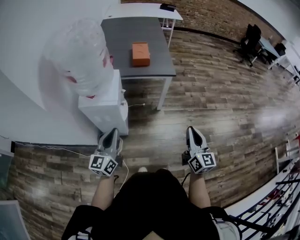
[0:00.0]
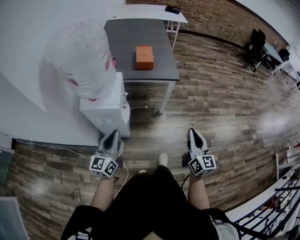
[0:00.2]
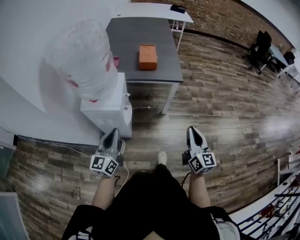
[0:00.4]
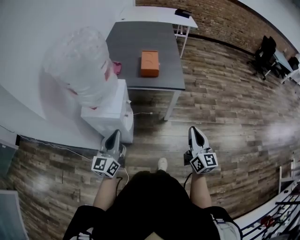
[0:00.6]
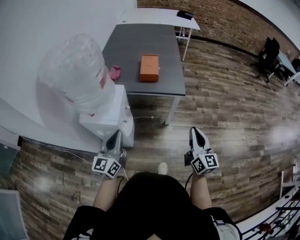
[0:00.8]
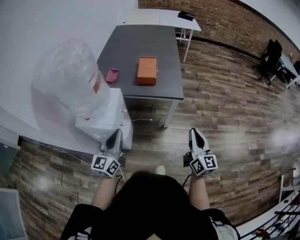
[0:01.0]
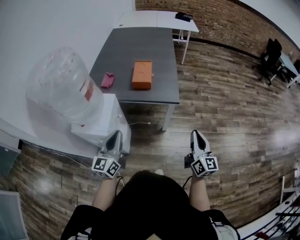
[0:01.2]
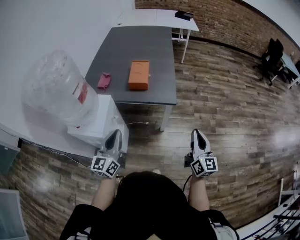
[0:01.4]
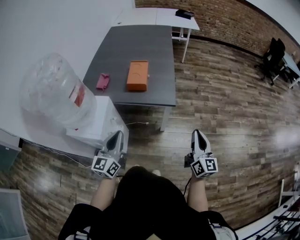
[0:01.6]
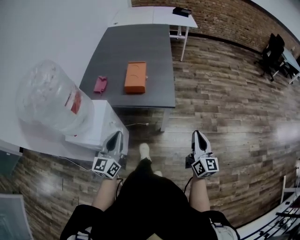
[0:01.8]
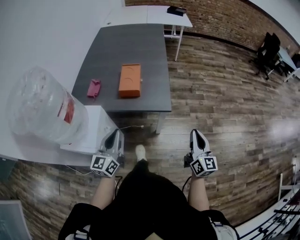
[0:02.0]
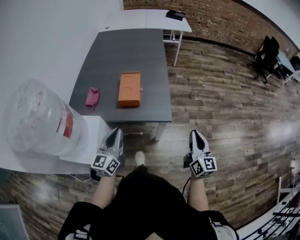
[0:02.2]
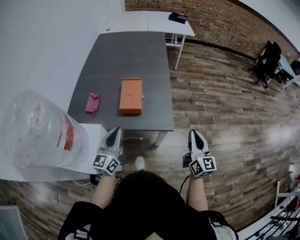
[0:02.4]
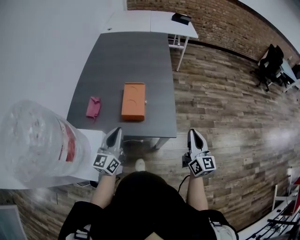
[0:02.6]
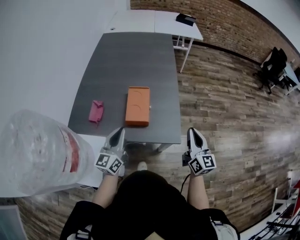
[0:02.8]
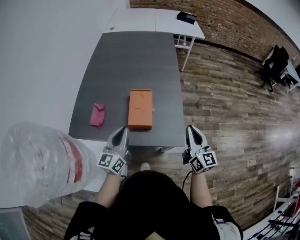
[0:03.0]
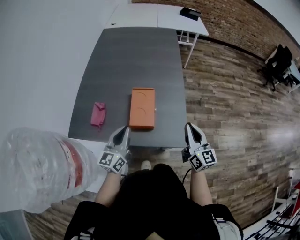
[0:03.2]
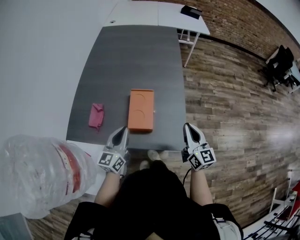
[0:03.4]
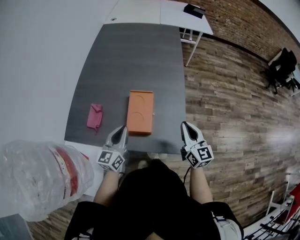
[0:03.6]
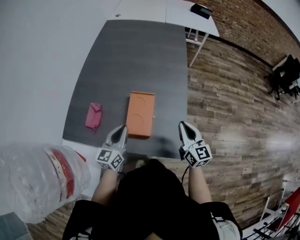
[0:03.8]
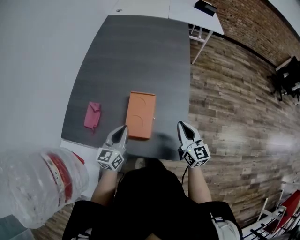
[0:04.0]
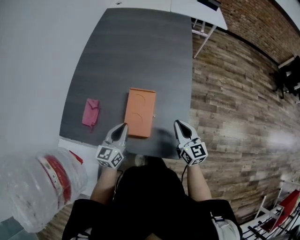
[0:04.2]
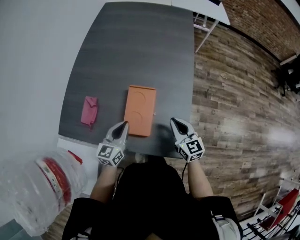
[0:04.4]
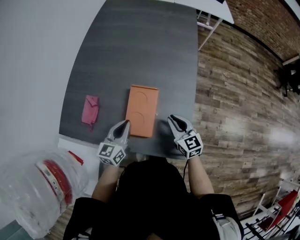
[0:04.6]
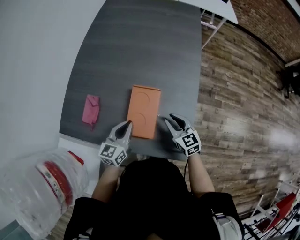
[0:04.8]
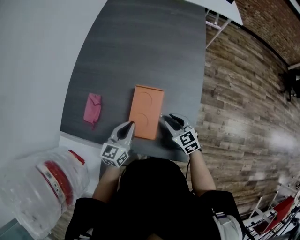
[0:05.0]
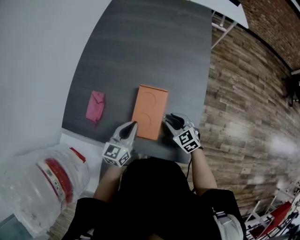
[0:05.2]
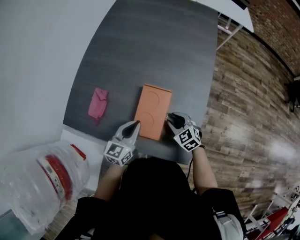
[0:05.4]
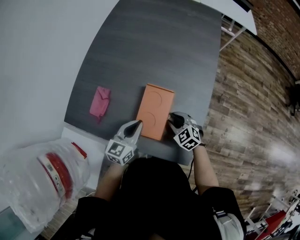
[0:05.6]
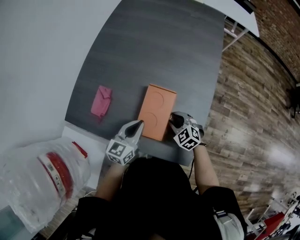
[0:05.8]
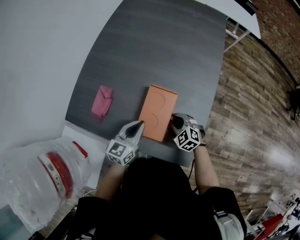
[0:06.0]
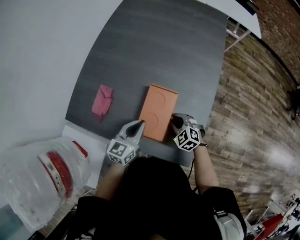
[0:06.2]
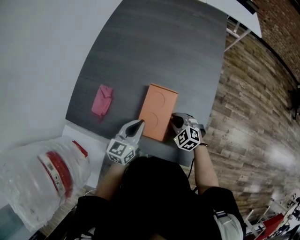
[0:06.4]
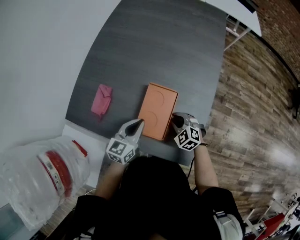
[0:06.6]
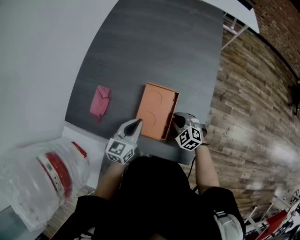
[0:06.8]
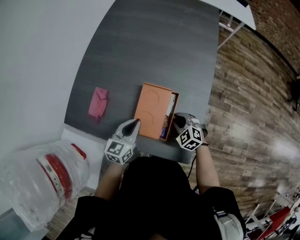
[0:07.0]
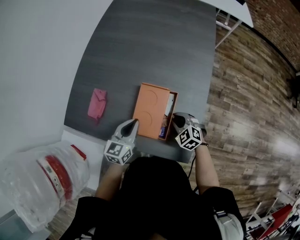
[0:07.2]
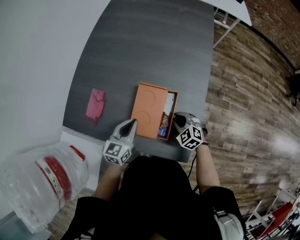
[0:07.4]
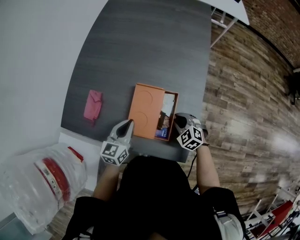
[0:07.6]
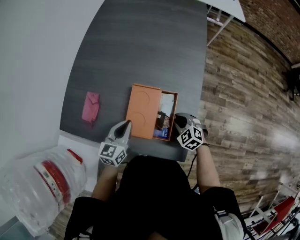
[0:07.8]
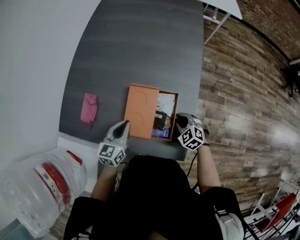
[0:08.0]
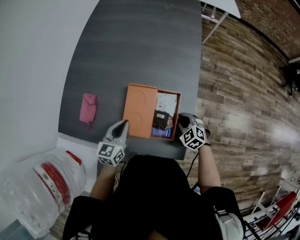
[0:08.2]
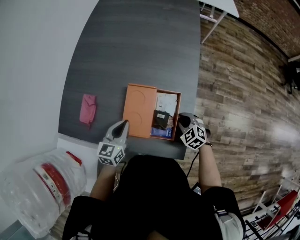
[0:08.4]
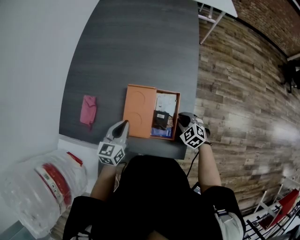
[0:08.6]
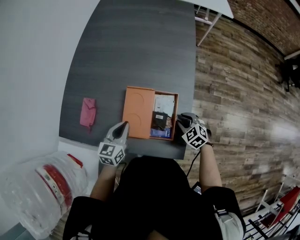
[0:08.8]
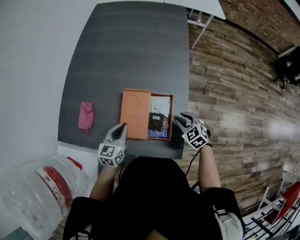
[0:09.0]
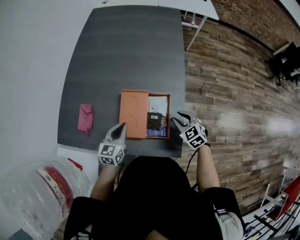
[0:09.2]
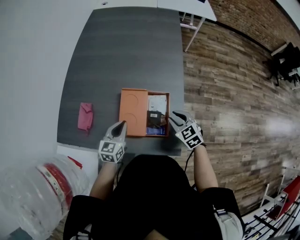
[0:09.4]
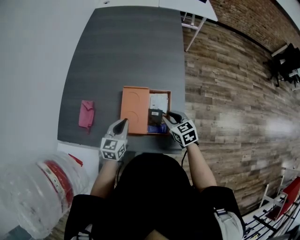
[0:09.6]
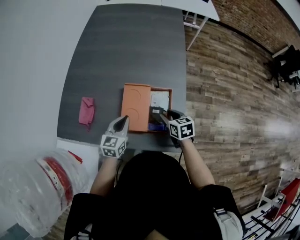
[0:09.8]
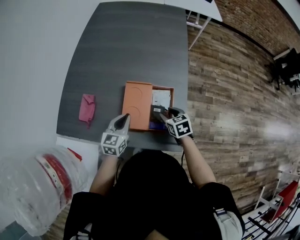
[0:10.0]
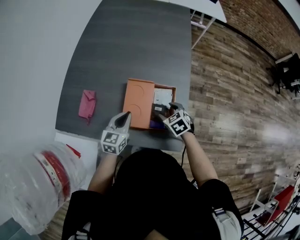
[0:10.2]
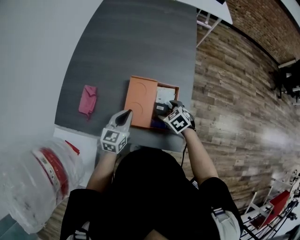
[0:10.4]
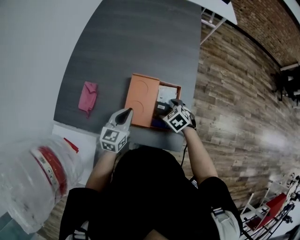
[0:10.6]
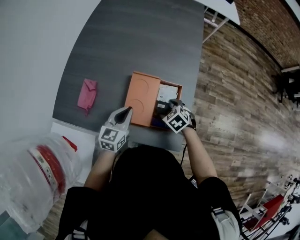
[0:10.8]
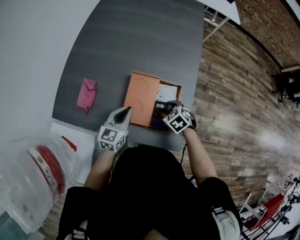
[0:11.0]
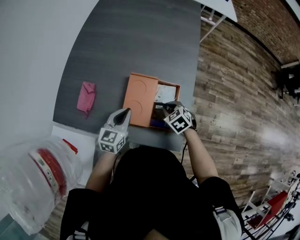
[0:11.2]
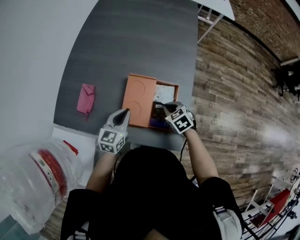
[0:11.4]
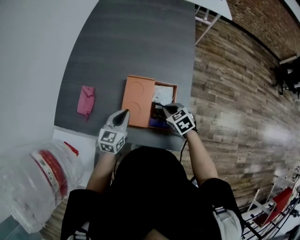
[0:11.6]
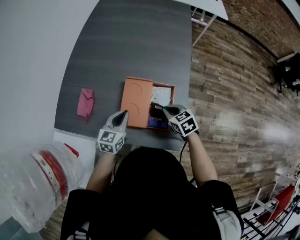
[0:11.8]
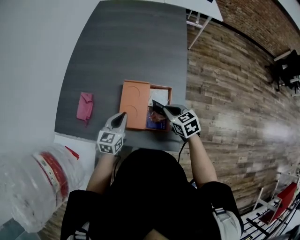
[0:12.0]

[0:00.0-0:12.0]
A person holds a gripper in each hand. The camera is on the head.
0:00.0 to 0:01.6: Both grippers move forward and to the right, approximately 25 cm.
0:01.6 to 0:03.0: The grippers both shift forward by about 25 cm.
0:03.0 to 0:04.4: The left gripper shifts approximately 15 cm downward and forward; the right gripper is displaced forward, downward and to the left by some 20 cm, and rotates roughly 30 degrees.
0:04.4 to 0:06.0: The right gripper travels downward and to the left by about 15 cm, and tilts its fingers approximately 30 degrees downward.
0:06.0 to 0:07.6: The right gripper goes approximately 5 cm to the right.
0:07.6 to 0:09.0: The right gripper moves to the right, some 5 cm.
0:09.0 to 0:10.4: The right gripper shifts about 10 cm to the left, and opens up.
0:10.4 to 0:12.0: The right gripper moves upward, about 10 cm, changes its angle by some 20 degrees, and closes.

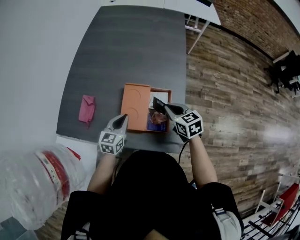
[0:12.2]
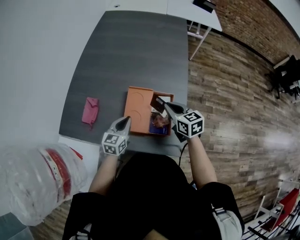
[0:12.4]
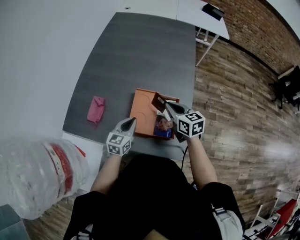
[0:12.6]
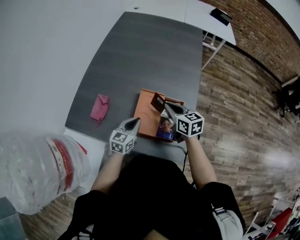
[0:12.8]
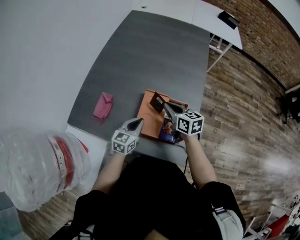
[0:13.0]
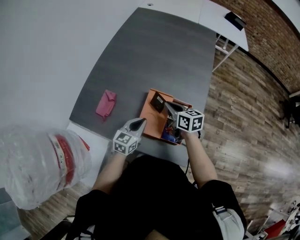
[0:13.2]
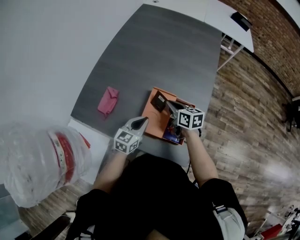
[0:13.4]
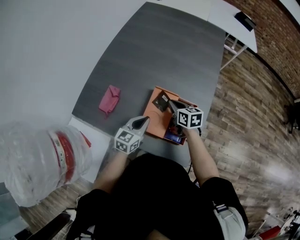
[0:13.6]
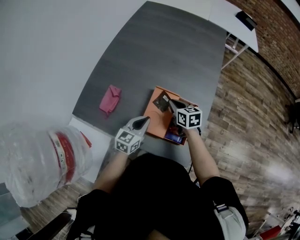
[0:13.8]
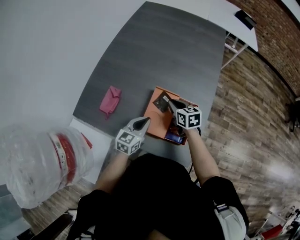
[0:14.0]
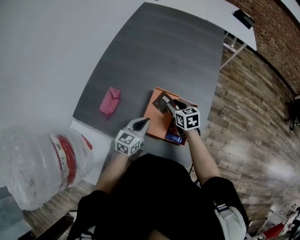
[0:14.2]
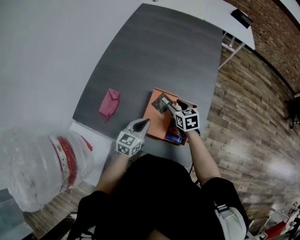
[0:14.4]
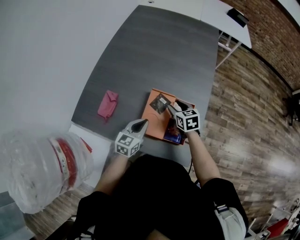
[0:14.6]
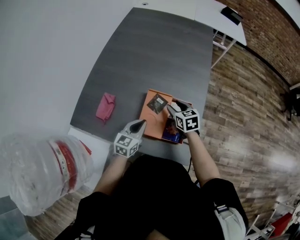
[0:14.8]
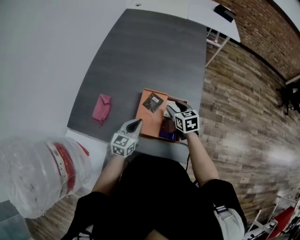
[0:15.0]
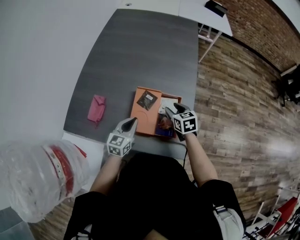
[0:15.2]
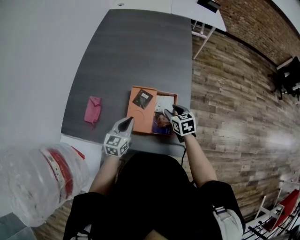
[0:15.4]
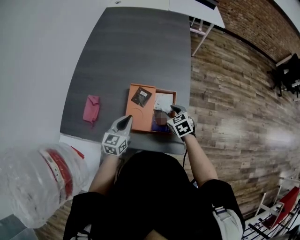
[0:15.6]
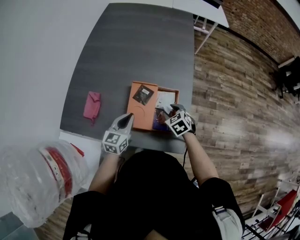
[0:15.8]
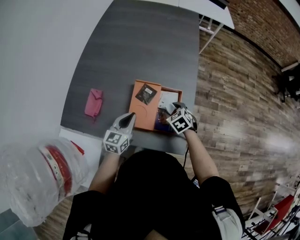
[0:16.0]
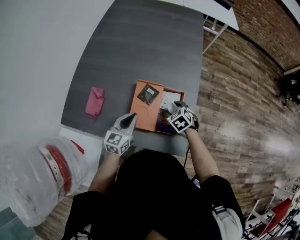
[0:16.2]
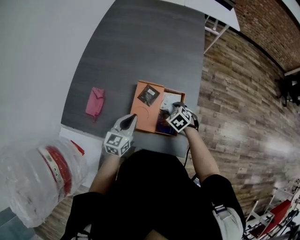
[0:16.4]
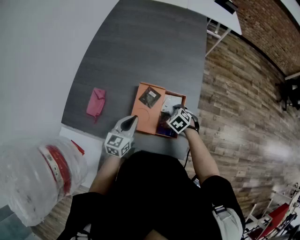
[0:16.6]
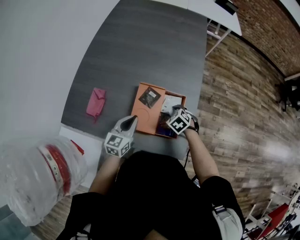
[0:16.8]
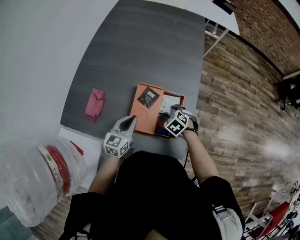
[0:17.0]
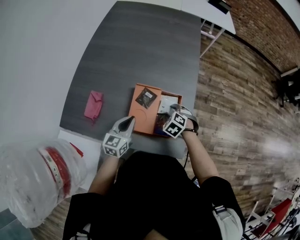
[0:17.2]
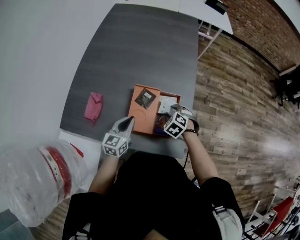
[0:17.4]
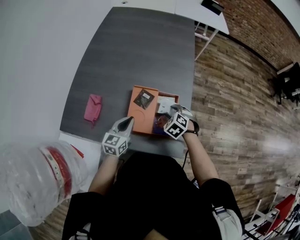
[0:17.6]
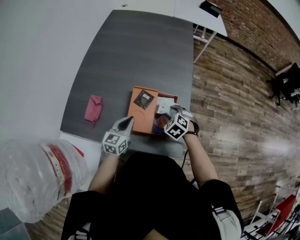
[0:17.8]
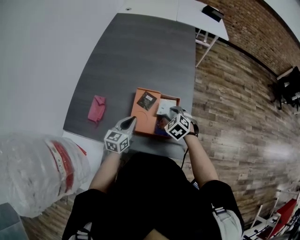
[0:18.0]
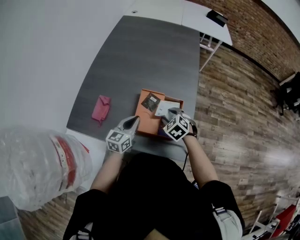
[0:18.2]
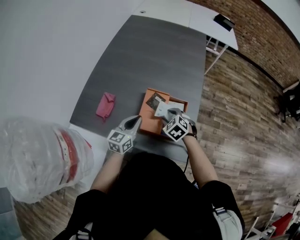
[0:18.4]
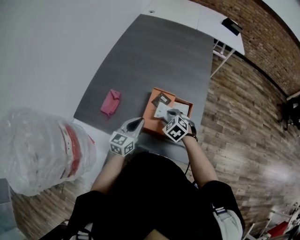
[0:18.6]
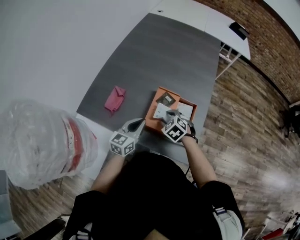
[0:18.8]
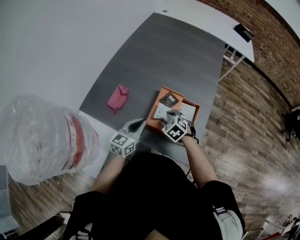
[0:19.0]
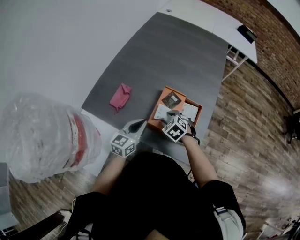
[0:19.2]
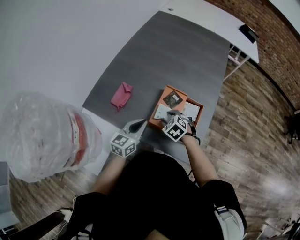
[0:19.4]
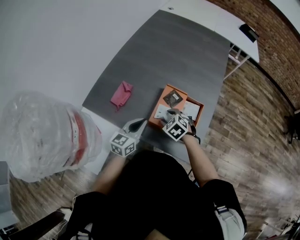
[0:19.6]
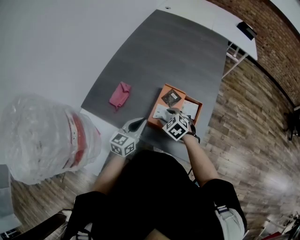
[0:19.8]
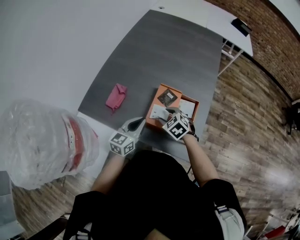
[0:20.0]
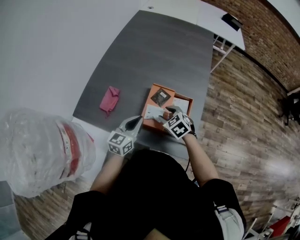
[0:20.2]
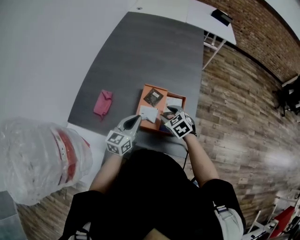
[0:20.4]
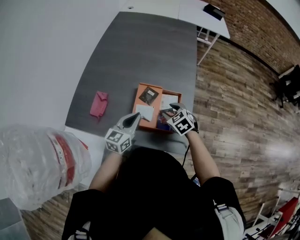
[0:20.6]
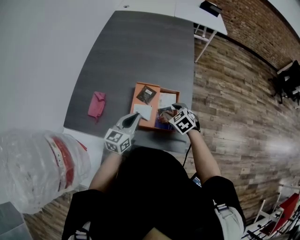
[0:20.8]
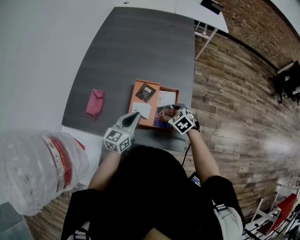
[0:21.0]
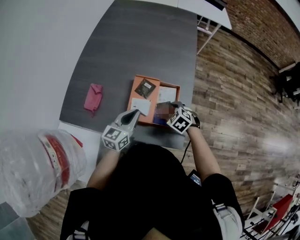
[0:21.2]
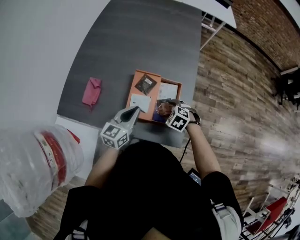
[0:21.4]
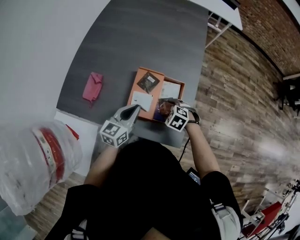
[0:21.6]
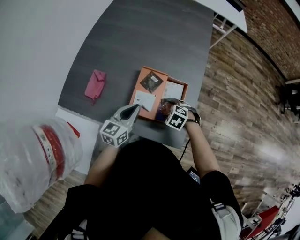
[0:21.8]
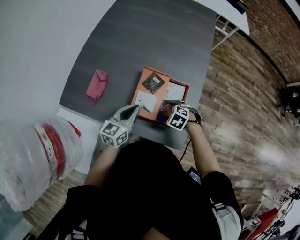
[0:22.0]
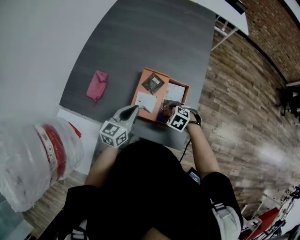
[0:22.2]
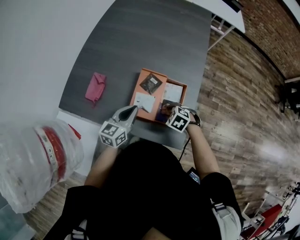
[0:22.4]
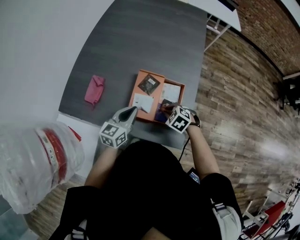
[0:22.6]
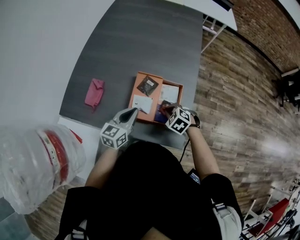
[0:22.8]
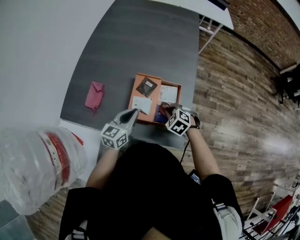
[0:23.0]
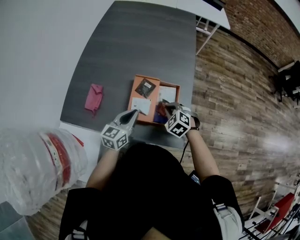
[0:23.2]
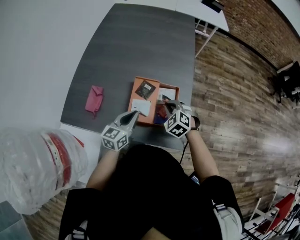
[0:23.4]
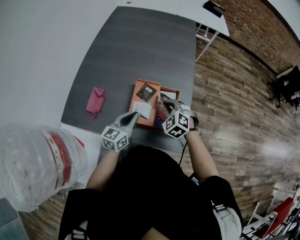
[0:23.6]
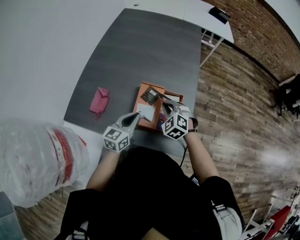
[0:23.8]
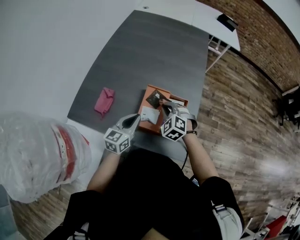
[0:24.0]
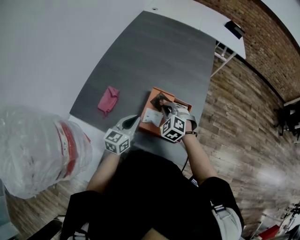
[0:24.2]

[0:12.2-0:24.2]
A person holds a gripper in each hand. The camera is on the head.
0:12.2 to 0:13.8: The right gripper shifts about 15 cm forward, to the left and downward.
0:13.8 to 0:15.2: The right gripper shifts some 10 cm to the right, and opens.
0:15.2 to 0:16.6: The right gripper travels downward by roughly 10 cm, and rotates roughly 40 degrees.
0:16.6 to 0:18.2: The right gripper is displaced upward by about 10 cm.
0:18.2 to 0:19.8: The left gripper travels backward by about 5 cm, while the right gripper heads to the left, covering some 10 cm.
0:19.8 to 0:21.2: The left gripper heads to the right, covering approximately 5 cm; the right gripper moves to the right, about 15 cm.
0:21.2 to 0:22.6: The right gripper closes up.
0:22.6 to 0:24.2: The right gripper heads upward, to the left and forward, covering approximately 15 cm, and swivels approximately 30 degrees.
